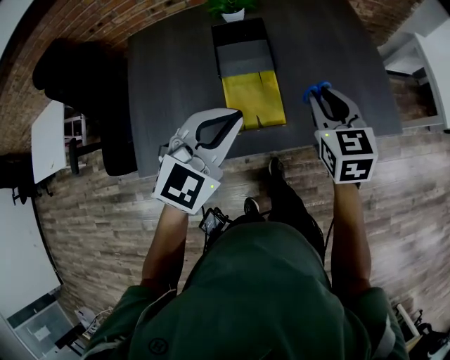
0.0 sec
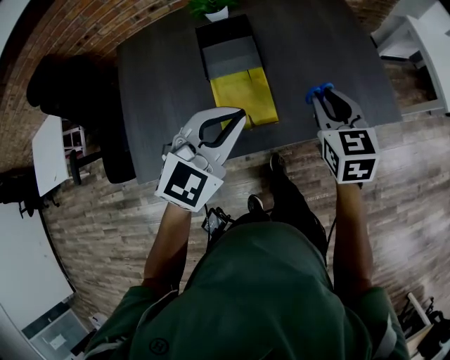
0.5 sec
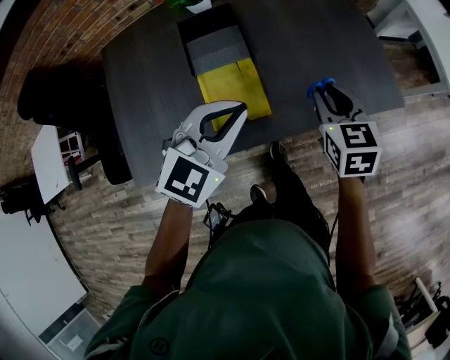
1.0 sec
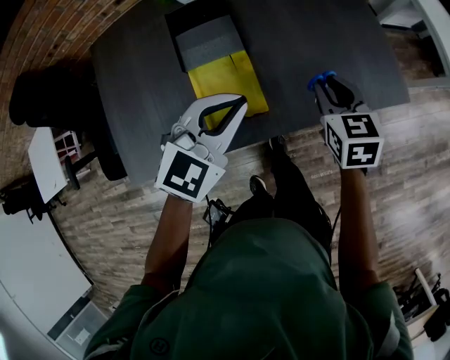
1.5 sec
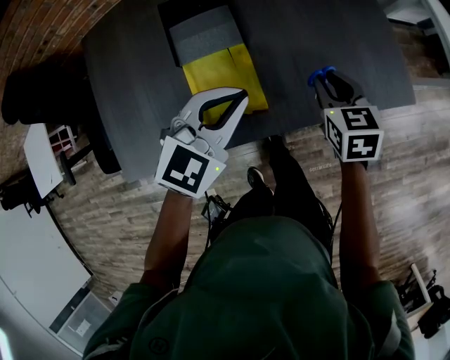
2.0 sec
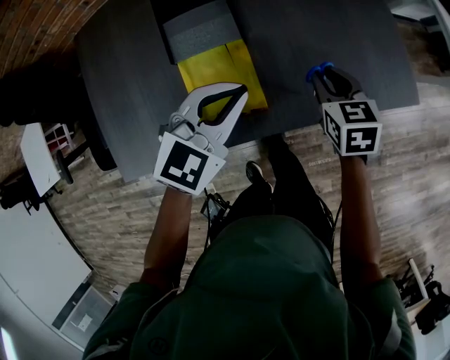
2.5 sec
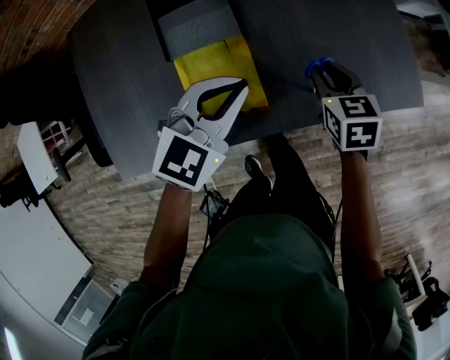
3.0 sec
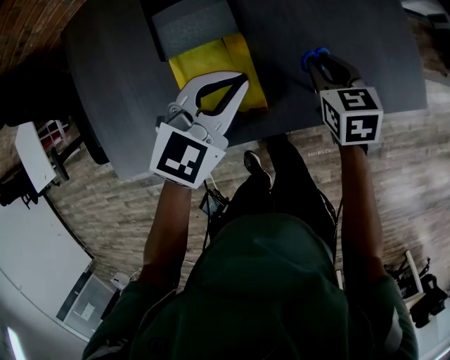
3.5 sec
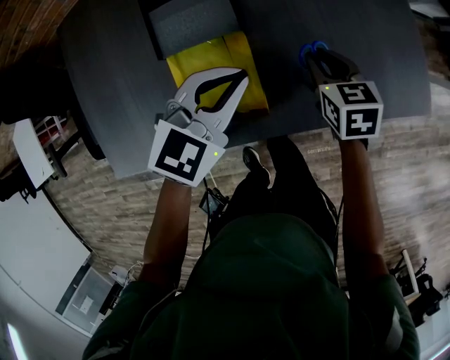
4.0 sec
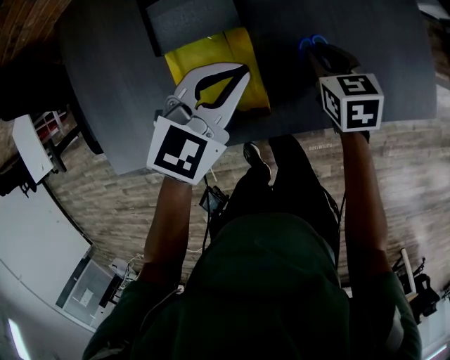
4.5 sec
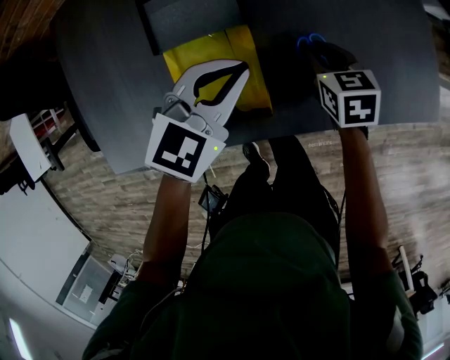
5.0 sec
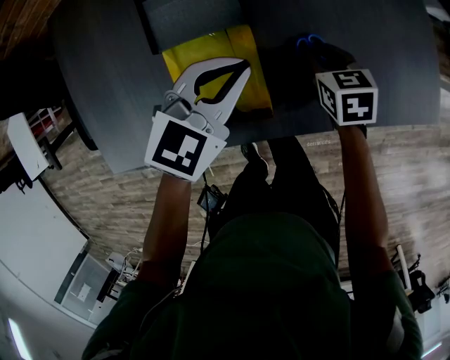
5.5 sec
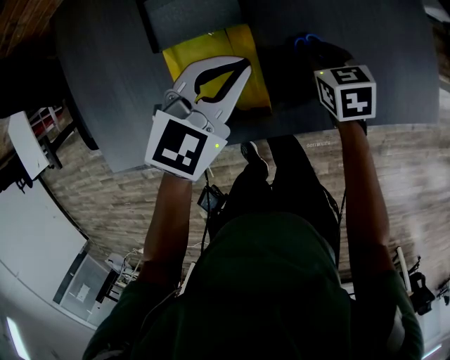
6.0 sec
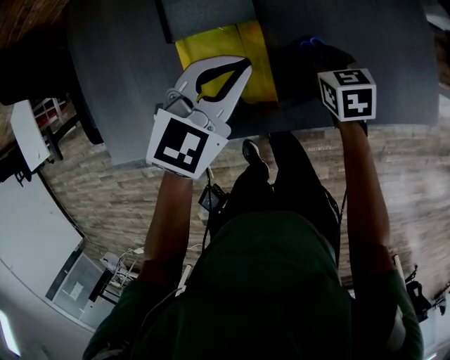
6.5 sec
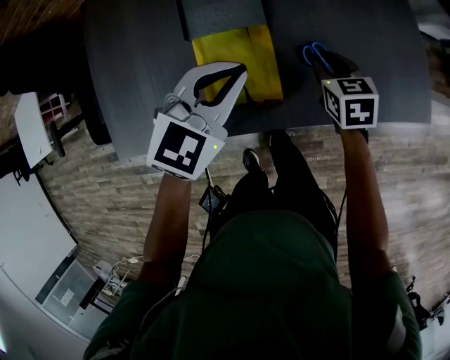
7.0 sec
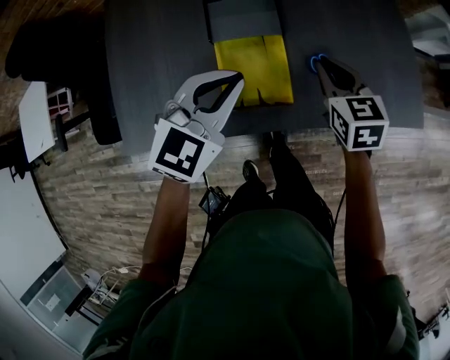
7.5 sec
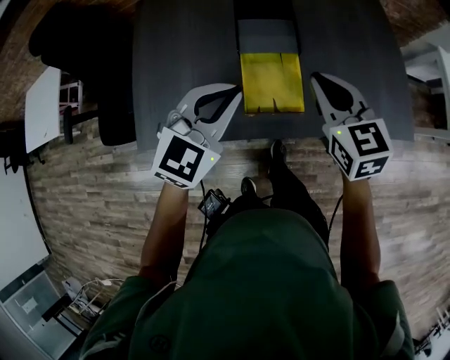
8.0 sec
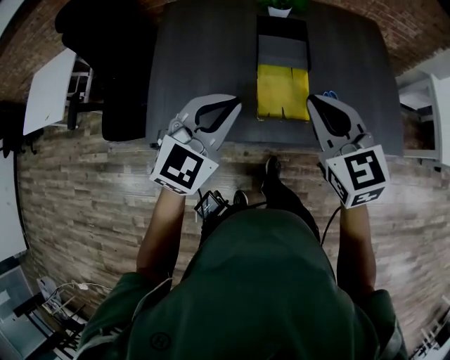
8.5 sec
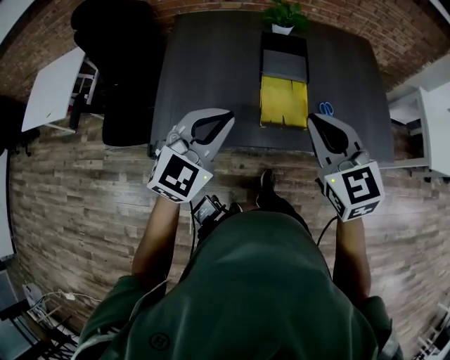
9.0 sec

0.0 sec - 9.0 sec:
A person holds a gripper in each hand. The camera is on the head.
0.0 sec - 2.0 sec: The left gripper goes approximately 15 cm downward, forward and to the right; the right gripper moves downward, to the right and forward, some 15 cm.
2.0 sec - 4.5 sec: The left gripper moves downward and forward, some 10 cm. Meanwhile the right gripper shifts roughly 15 cm downward, forward and to the left.
4.5 sec - 7.0 sec: The left gripper ends up approximately 5 cm from where it was.
7.0 sec - 9.0 sec: The right gripper shifts some 40 cm upward, backward and to the left, and rotates roughly 40 degrees, while the left gripper is displaced backward, to the left and upward by roughly 30 cm, and swivels roughly 20 degrees.

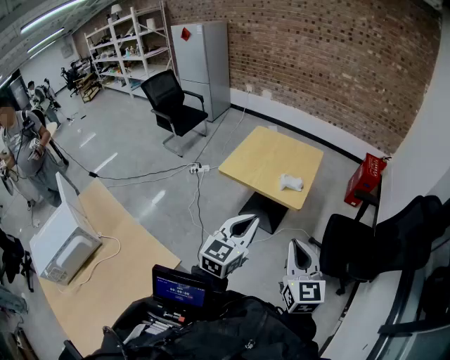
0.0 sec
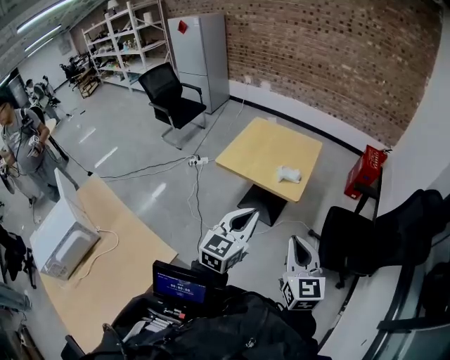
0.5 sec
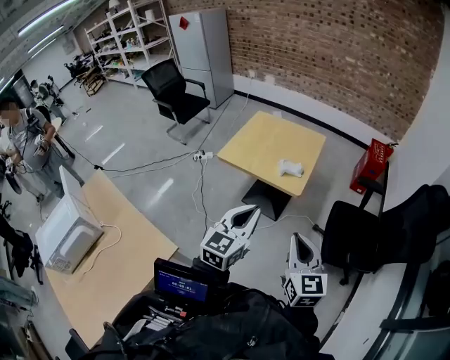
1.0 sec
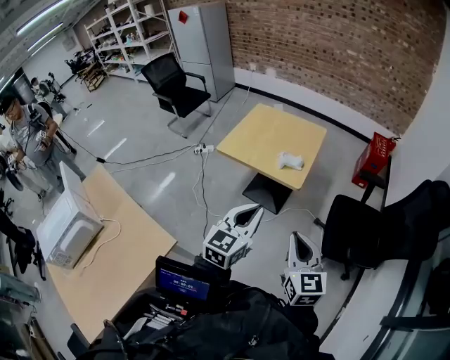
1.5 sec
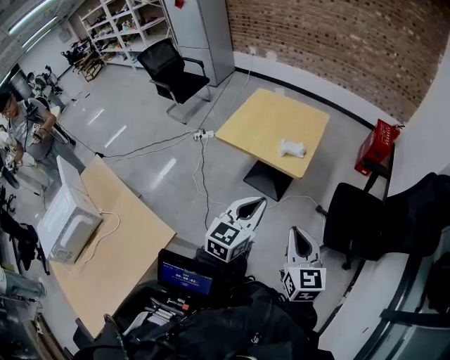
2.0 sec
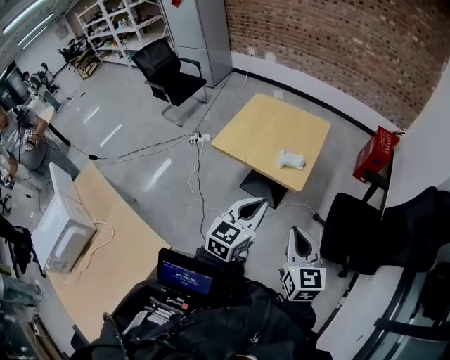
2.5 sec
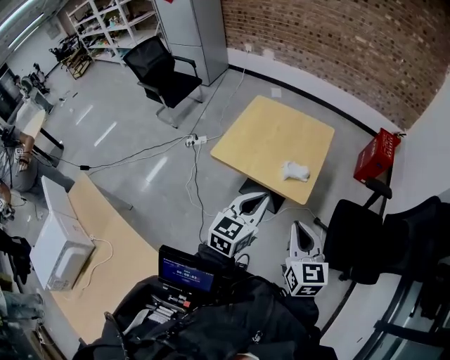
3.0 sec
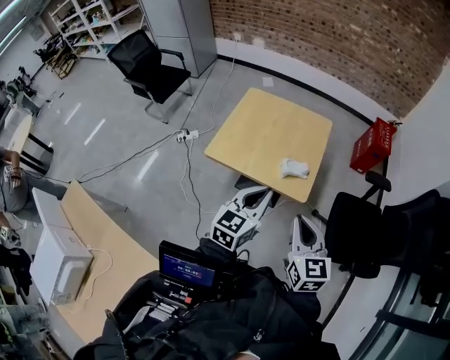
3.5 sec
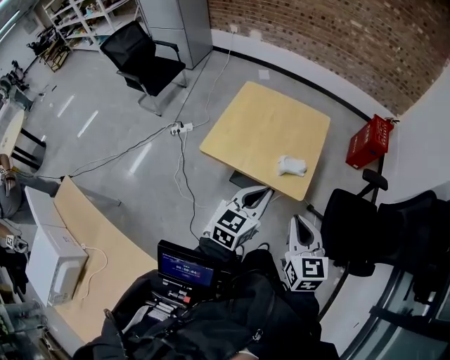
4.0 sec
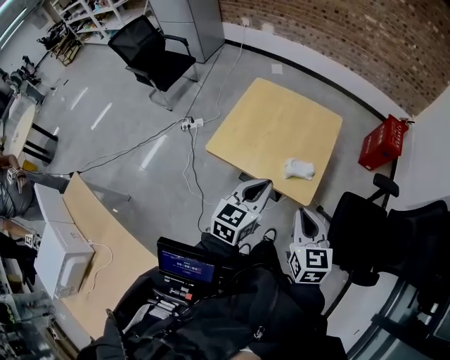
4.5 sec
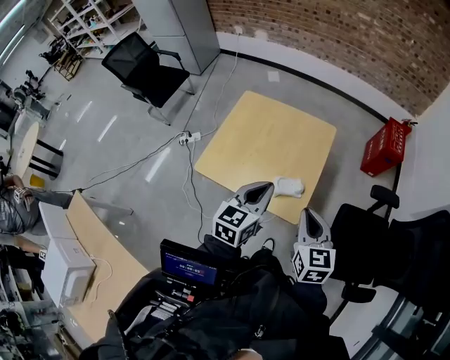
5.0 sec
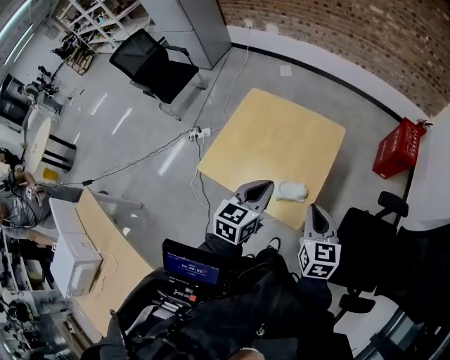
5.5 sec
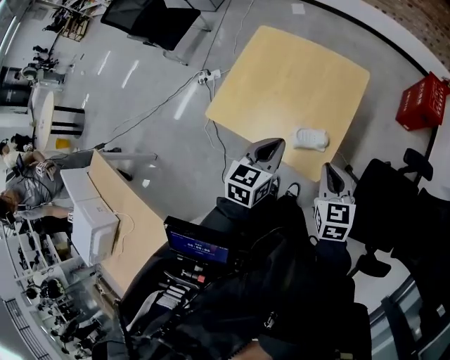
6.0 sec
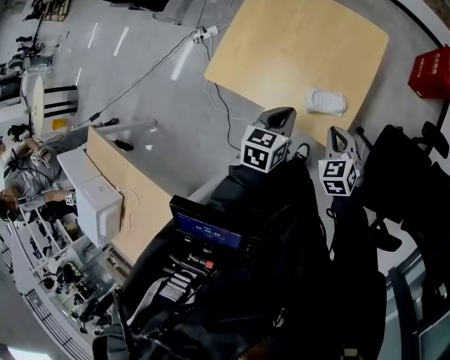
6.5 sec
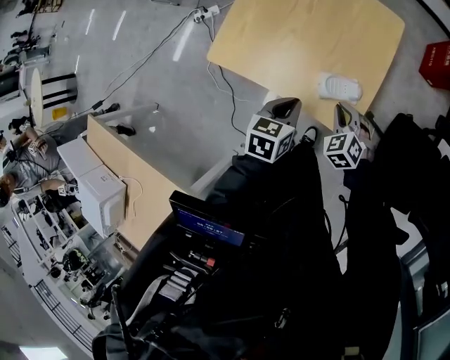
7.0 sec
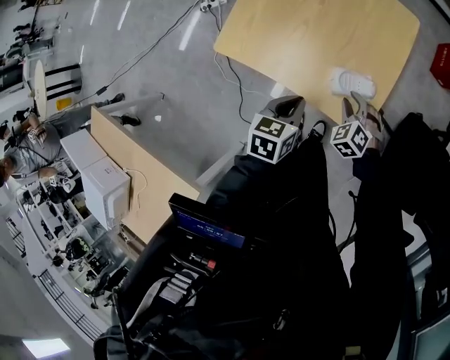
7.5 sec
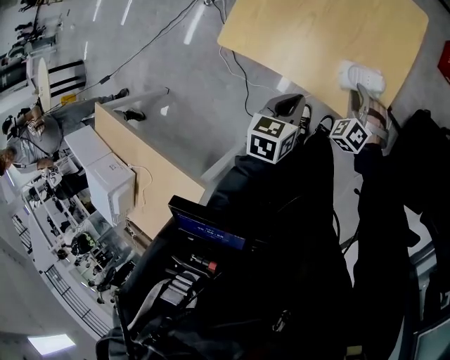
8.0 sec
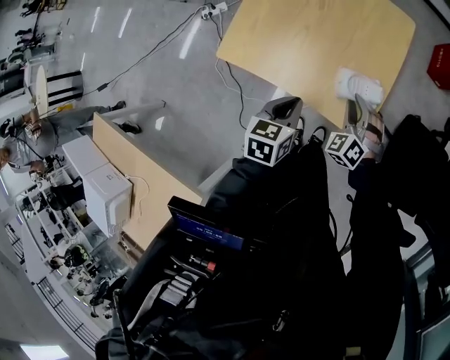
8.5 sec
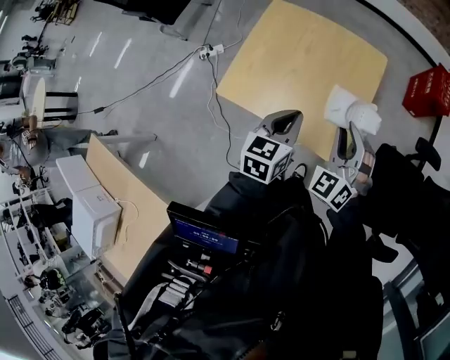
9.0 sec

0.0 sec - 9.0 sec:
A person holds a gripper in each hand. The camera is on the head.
0.0 sec - 2.0 sec: The right gripper is displaced downward and to the right by some 10 cm, while the left gripper heads to the right and downward, covering roughly 10 cm.
2.0 sec - 4.5 sec: The grippers both shift forward by about 30 cm.
4.5 sec - 7.0 sec: The grippers both shift downward and forward by approximately 30 cm. The right gripper changes its angle by about 50 degrees, while the left gripper swivels about 30 degrees.
7.0 sec - 9.0 sec: The left gripper moves upward, about 15 cm. The right gripper moves upward, approximately 25 cm, angles its fingers upward, by roughly 30 degrees, and opens up.

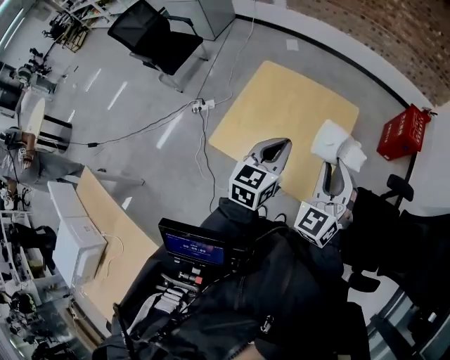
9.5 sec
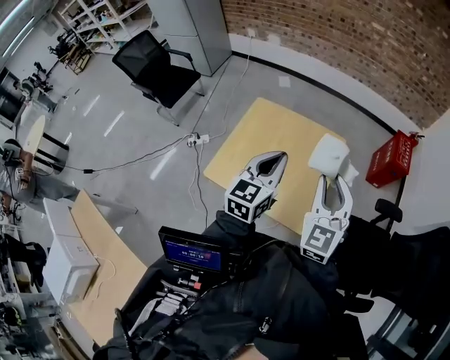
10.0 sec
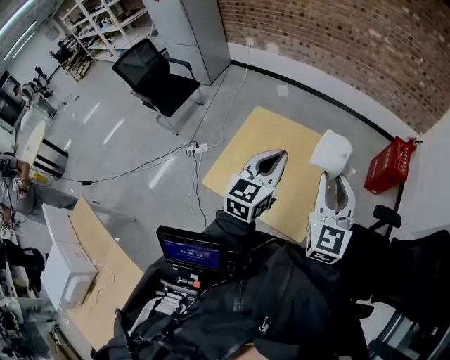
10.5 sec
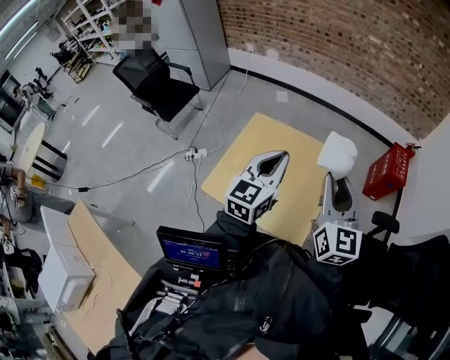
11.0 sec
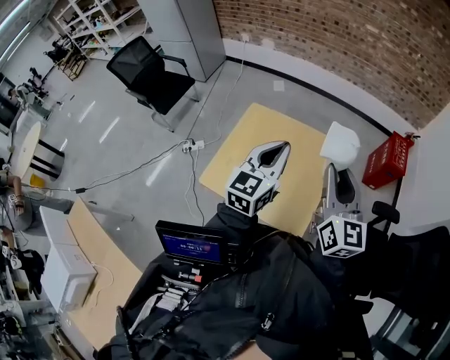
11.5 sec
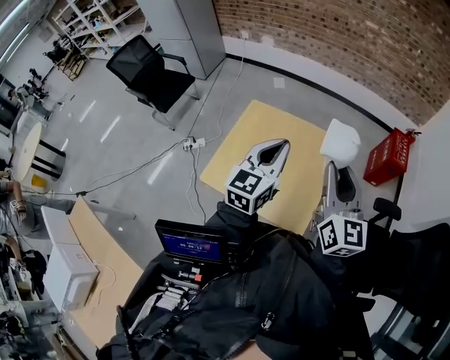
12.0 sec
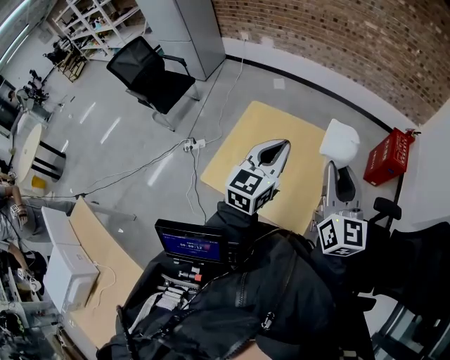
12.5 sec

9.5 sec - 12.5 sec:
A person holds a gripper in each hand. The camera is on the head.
9.5 sec - 11.0 sec: The right gripper heads upward, covering some 10 cm, and twists some 40 degrees clockwise, seen from behind, while the left gripper goes roughly 10 cm upward and forward.
11.0 sec - 12.5 sec: The grippers stay close to where they were, moving slightly.

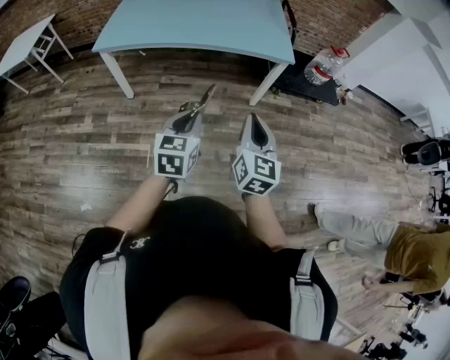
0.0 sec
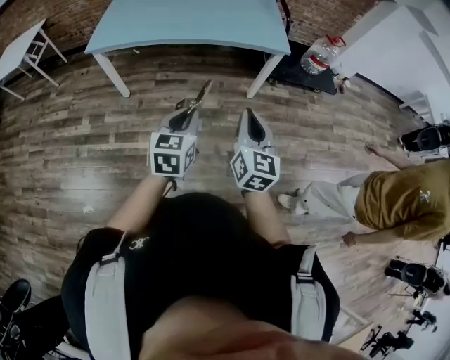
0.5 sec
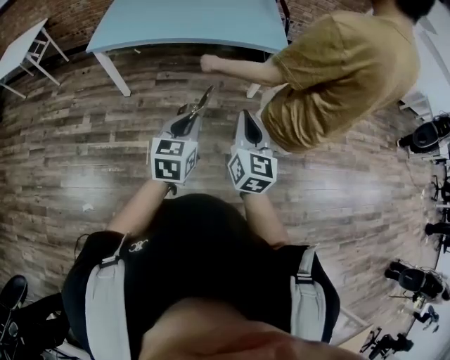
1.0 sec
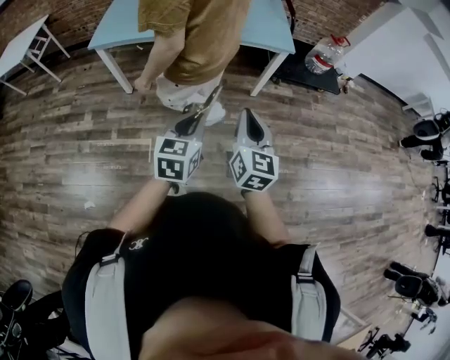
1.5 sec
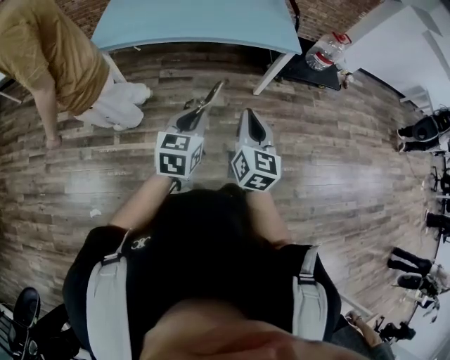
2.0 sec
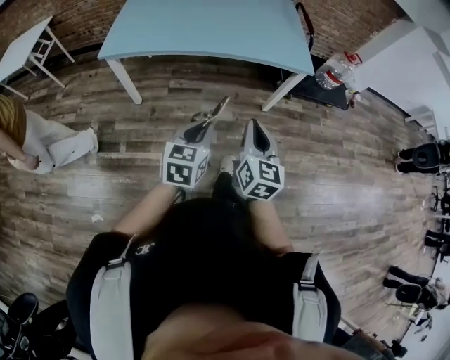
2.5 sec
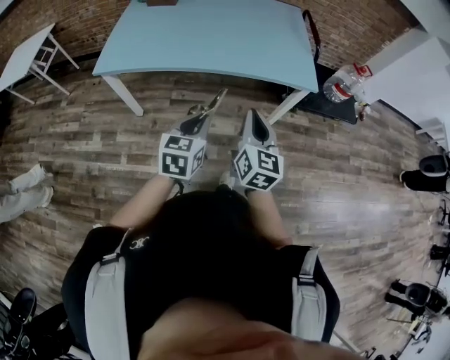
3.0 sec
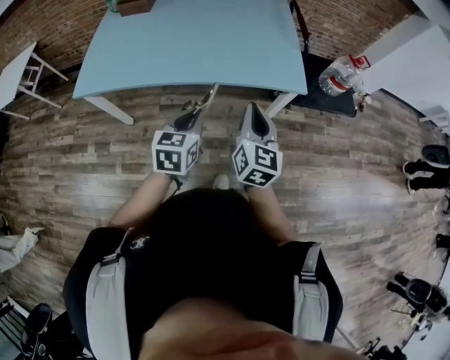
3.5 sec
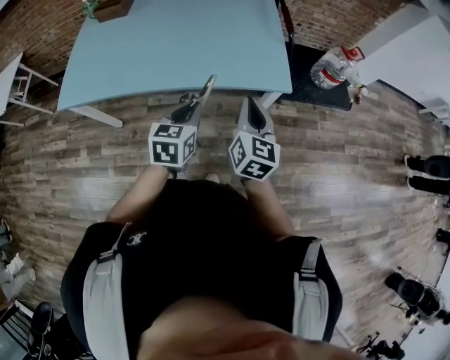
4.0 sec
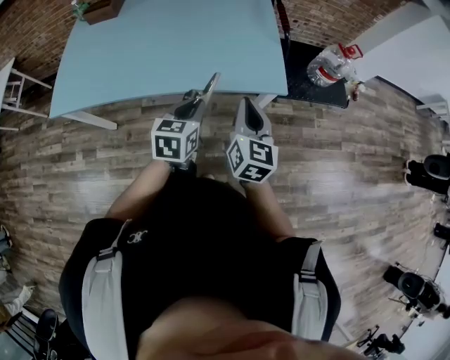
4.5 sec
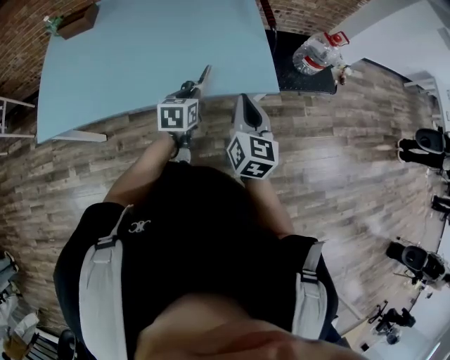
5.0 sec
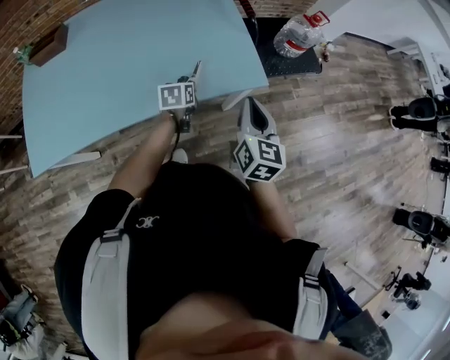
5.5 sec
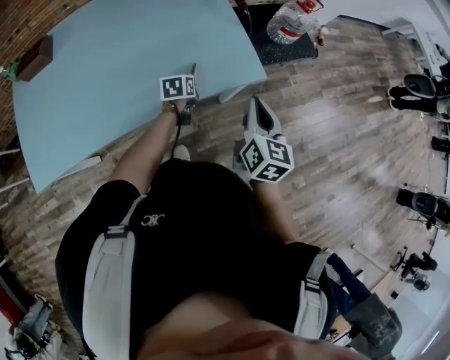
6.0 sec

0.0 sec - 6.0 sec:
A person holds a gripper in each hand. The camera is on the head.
0.0 sec - 2.0 sec: The right gripper goes about 5 cm to the left.
2.0 sec - 4.0 sec: Both grippers travel together forward, approximately 35 cm.
4.0 sec - 6.0 sec: The right gripper goes approximately 10 cm forward, and turns by some 20 degrees; the left gripper goes approximately 35 cm forward and downward, and swivels some 30 degrees.
